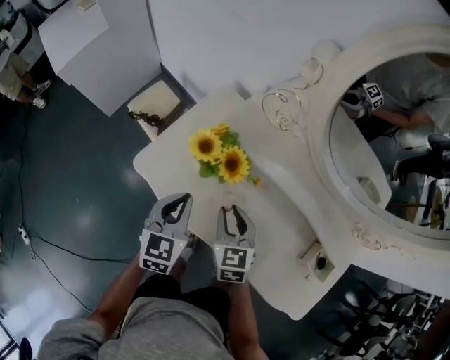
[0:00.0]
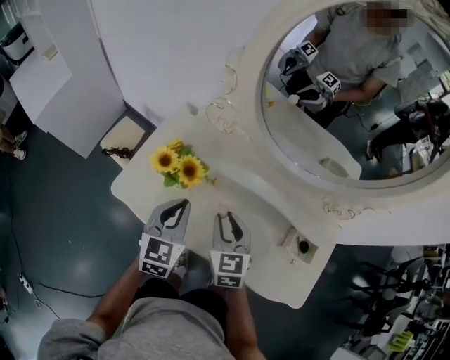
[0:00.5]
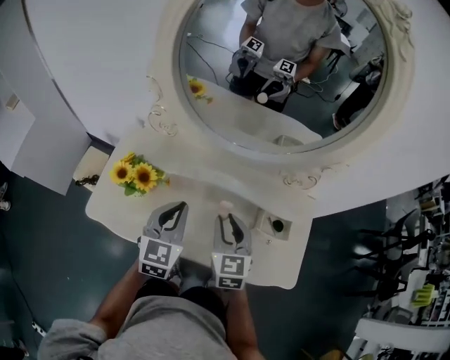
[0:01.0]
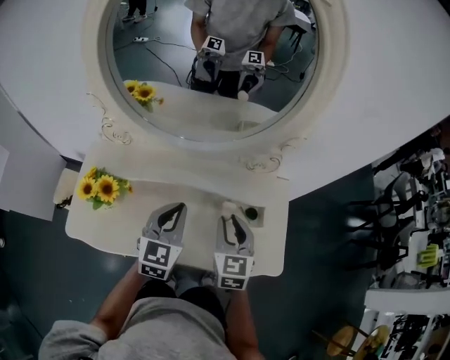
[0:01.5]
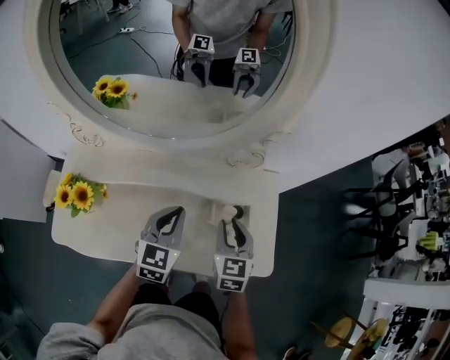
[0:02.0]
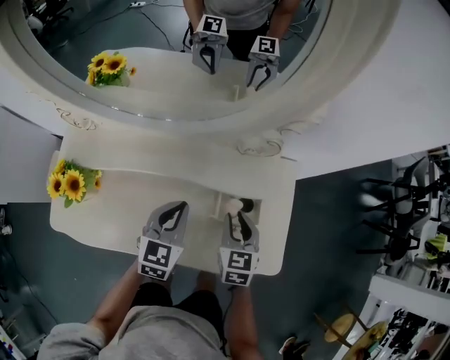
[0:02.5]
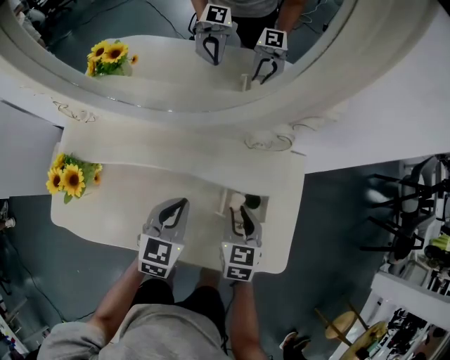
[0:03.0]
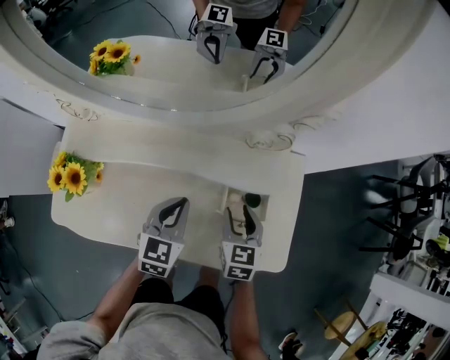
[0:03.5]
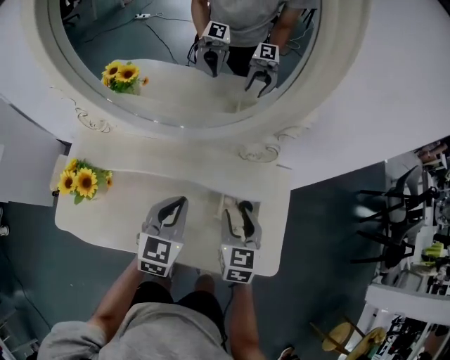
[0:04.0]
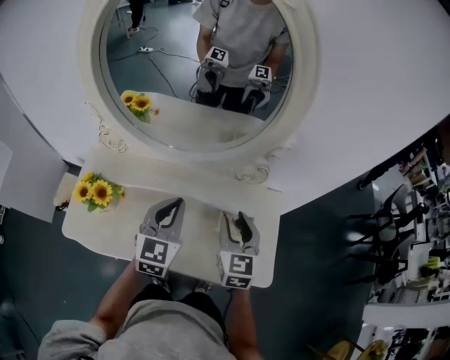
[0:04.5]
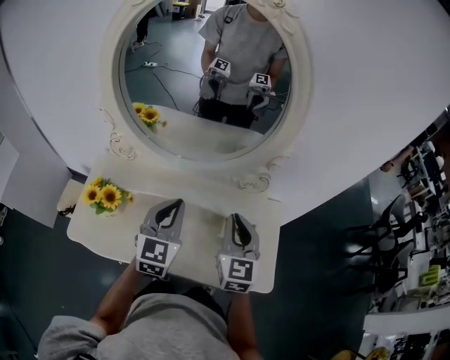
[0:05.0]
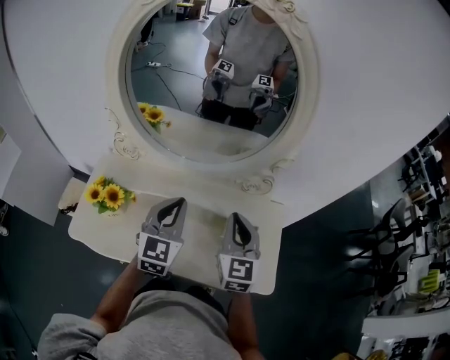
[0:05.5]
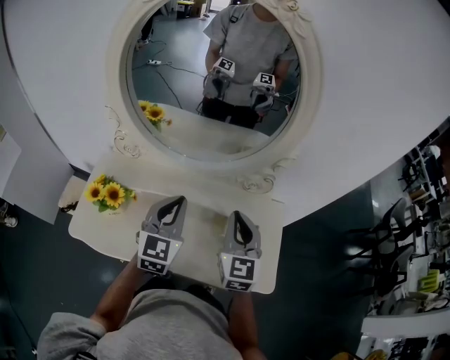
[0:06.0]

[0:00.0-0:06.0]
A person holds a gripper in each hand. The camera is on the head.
0:00.0 to 0:02.0: The left gripper moves approximately 40 cm, and rotates some 40 degrees. The right gripper ends up some 40 cm from where it was, and swivels about 40 degrees.
0:02.0 to 0:04.0: The right gripper goes downward and returns, roughly 10 cm each way. Meanwhile the left gripper goes downward and returns, some 10 cm each way.
0:04.0 to 0:06.0: The right gripper heads upward, covering approximately 15 cm, swivels approximately 20 degrees, and closes, while the left gripper goes approximately 15 cm upward and to the left.

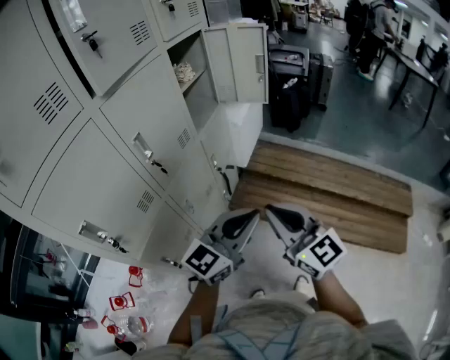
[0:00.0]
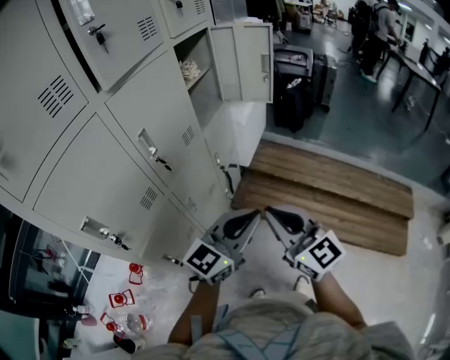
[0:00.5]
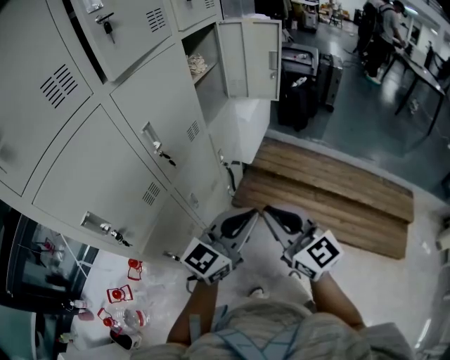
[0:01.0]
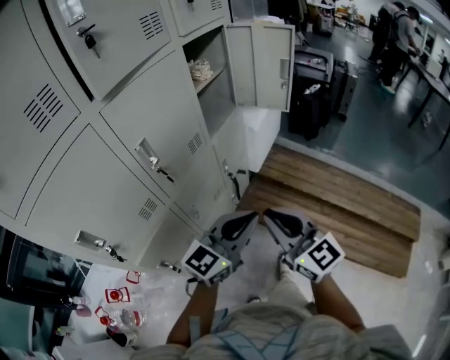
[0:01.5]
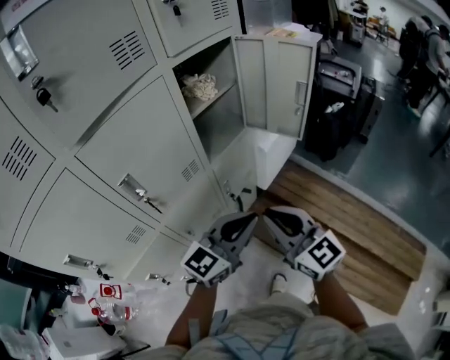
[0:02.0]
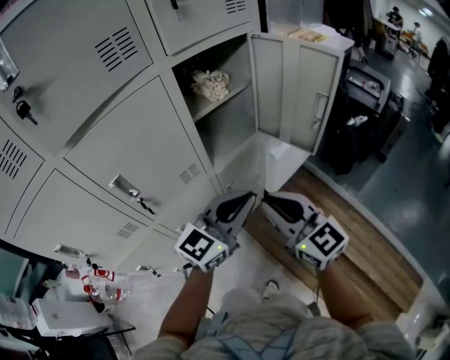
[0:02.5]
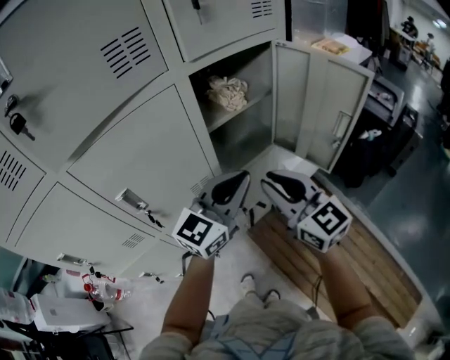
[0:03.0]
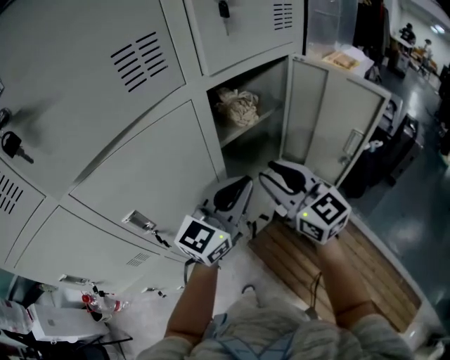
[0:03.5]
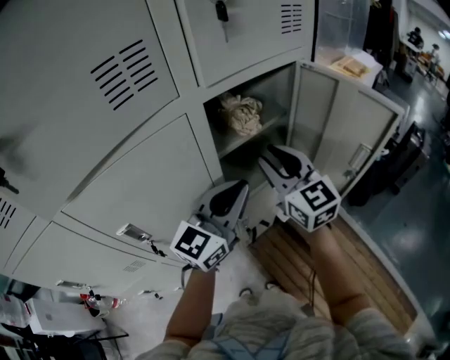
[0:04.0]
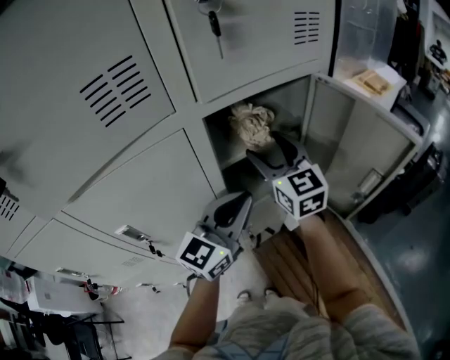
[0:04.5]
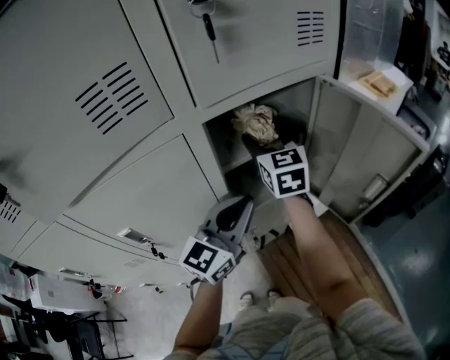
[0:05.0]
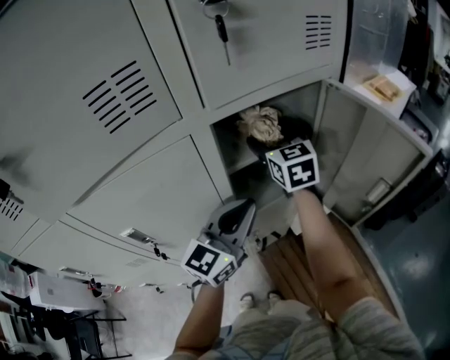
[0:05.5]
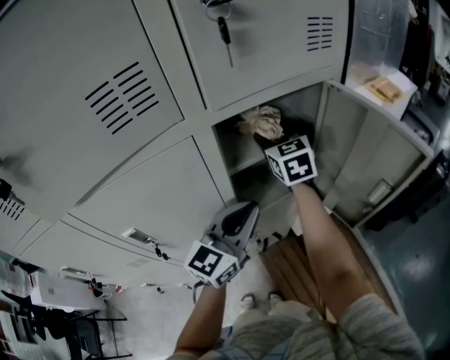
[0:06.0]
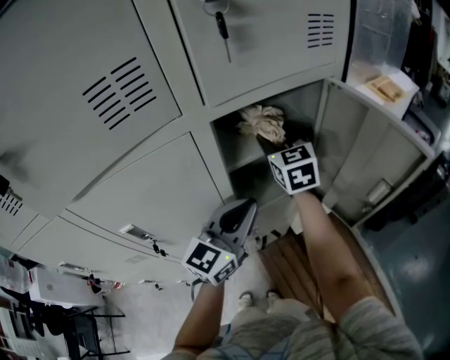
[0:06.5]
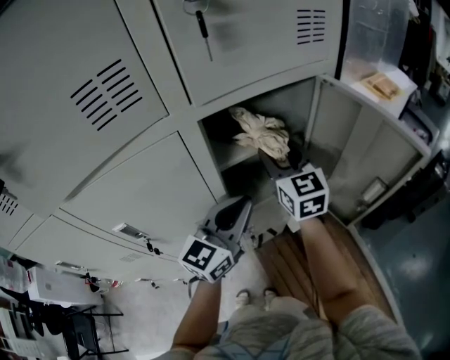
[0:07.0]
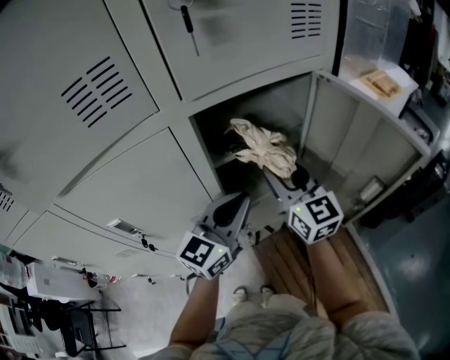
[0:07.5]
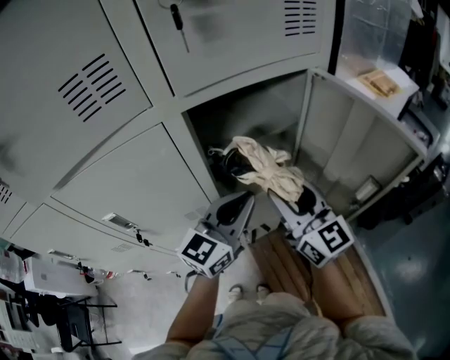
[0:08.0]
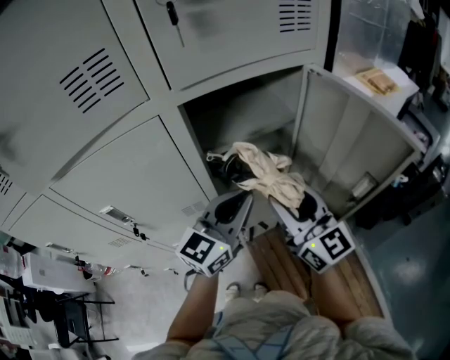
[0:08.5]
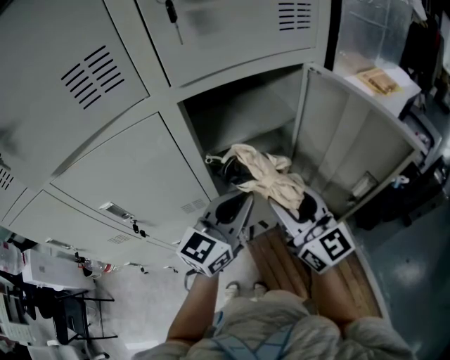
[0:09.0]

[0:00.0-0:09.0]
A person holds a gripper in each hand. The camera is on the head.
0:00.0 to 0:02.0: Both grippers move forward, some 20 cm.
0:02.0 to 0:04.5: Both grippers travel together forward, approximately 35 cm. The left gripper changes its angle by about 30 degrees; the right gripper opens up.
0:04.5 to 0:07.0: The right gripper goes forward and returns, approximately 10 cm each way.
0:07.0 to 0:09.0: The right gripper is displaced backward by approximately 15 cm, and turns by approximately 20 degrees.

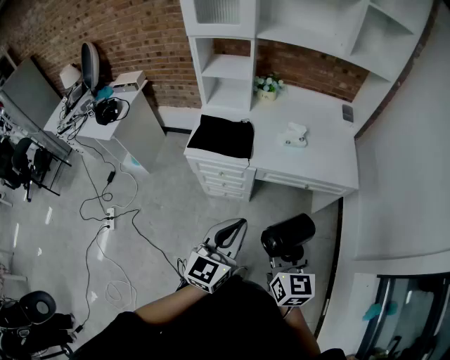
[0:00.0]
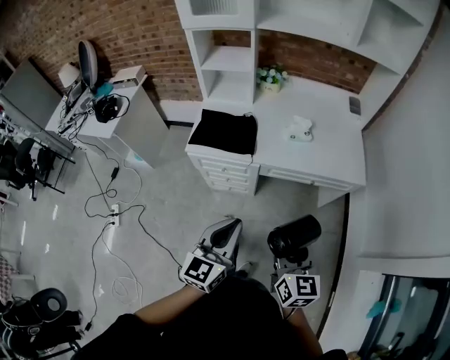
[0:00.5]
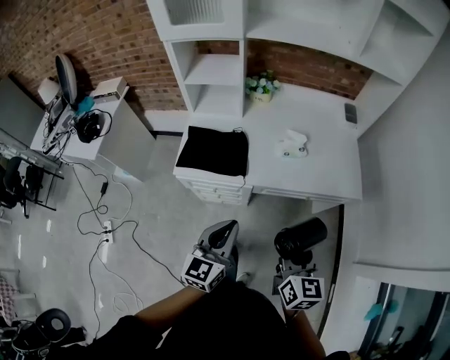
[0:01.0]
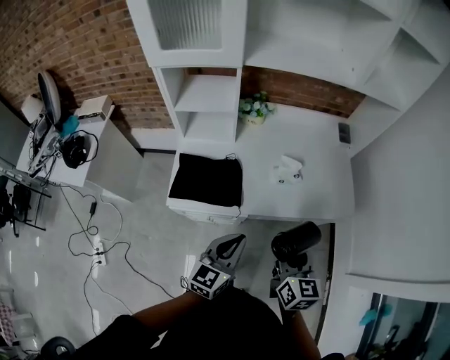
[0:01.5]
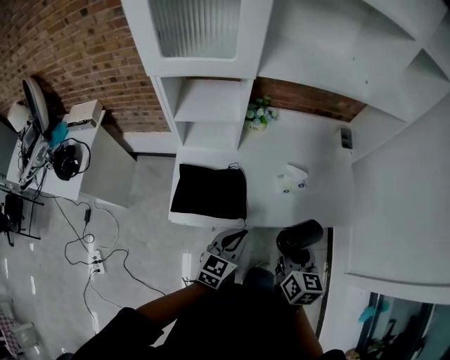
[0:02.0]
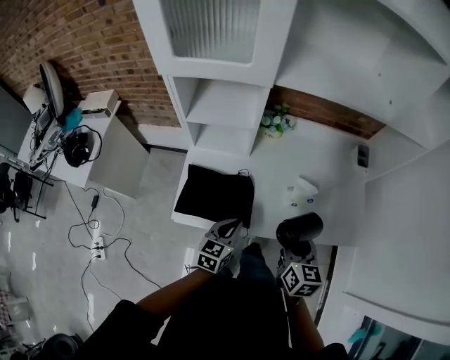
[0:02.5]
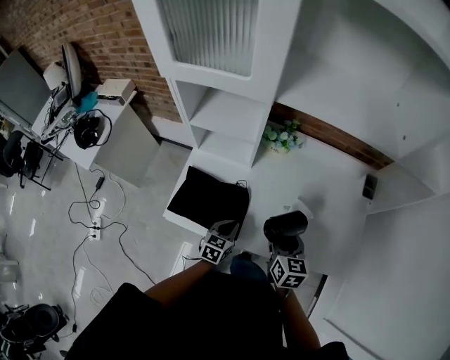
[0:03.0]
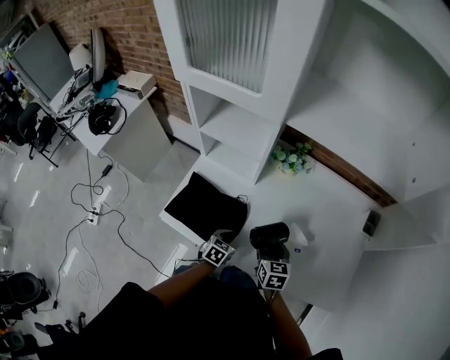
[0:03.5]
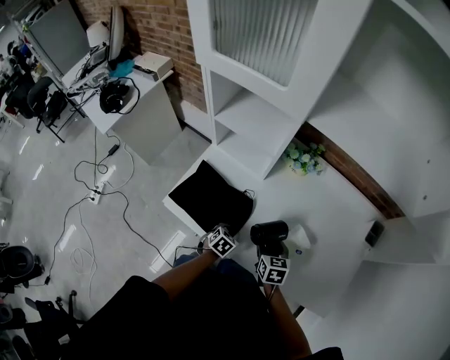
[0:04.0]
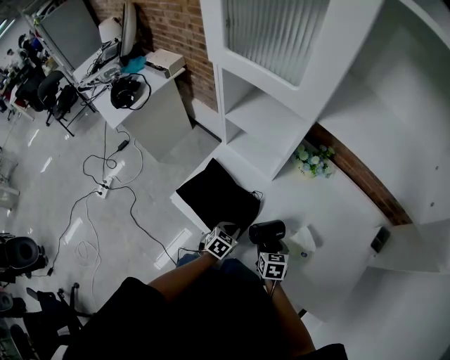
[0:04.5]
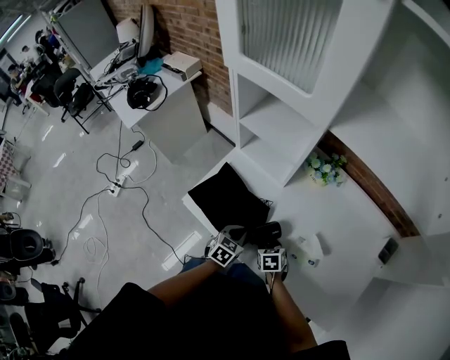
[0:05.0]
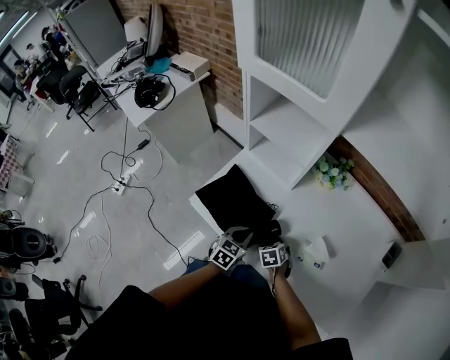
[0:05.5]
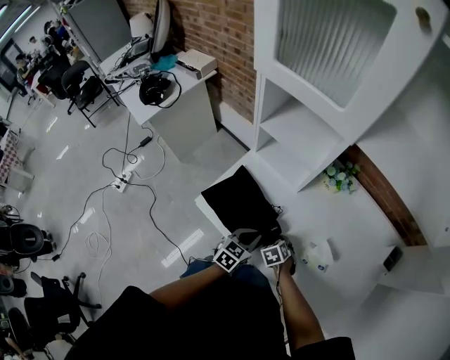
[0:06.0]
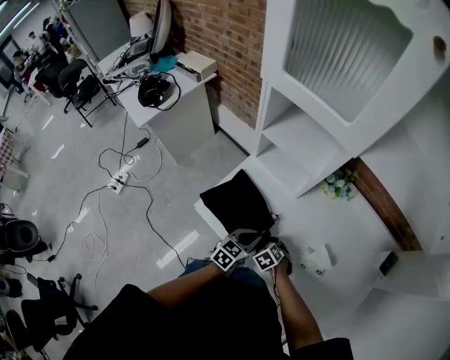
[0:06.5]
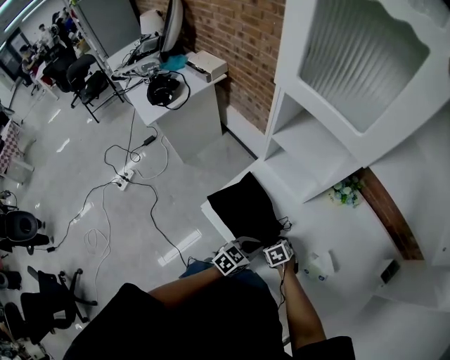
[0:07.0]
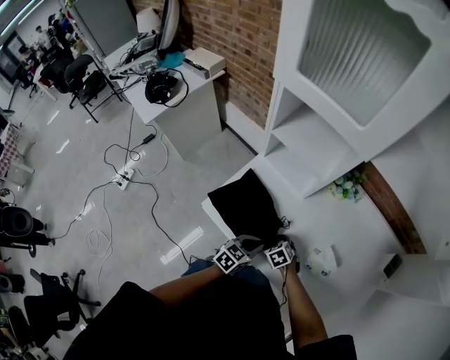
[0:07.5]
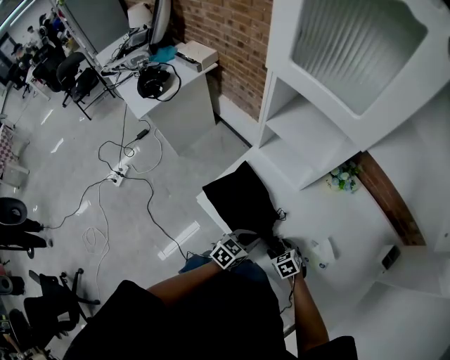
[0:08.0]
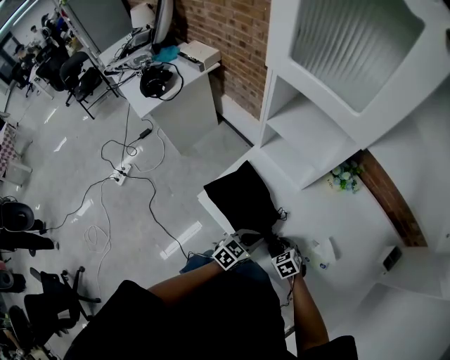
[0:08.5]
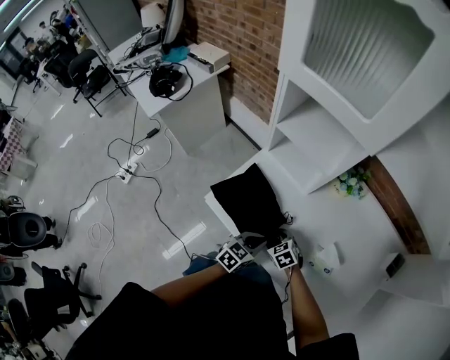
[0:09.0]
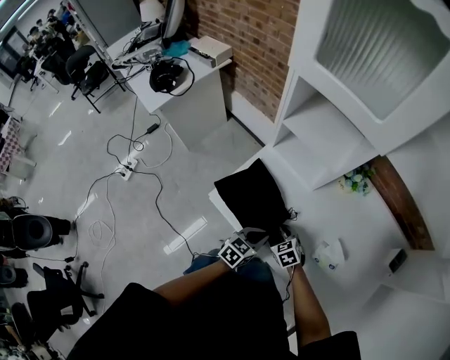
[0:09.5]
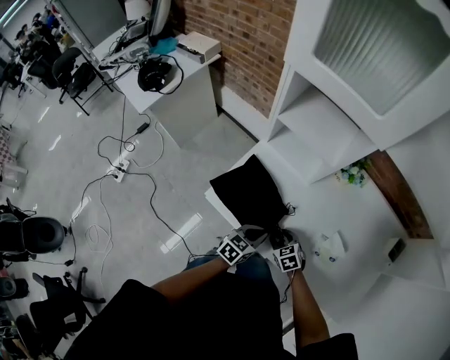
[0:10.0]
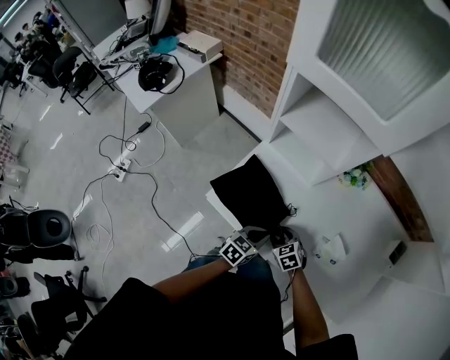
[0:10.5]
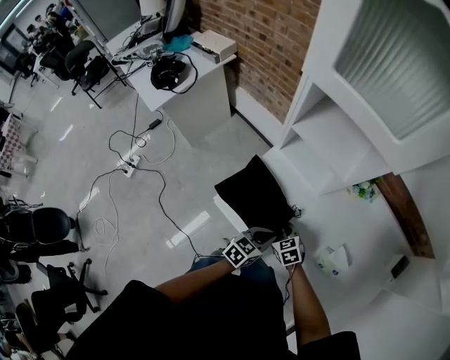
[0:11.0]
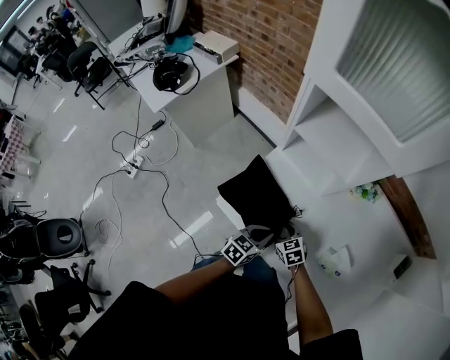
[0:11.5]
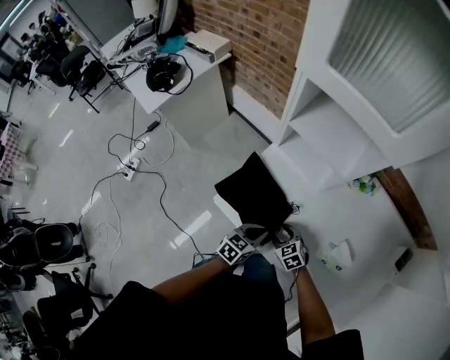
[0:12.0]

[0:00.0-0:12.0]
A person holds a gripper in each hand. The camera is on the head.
0:00.0 to 0:02.0: The two grippers go roughly 30 cm forward. The left gripper turns by roughly 20 degrees.
0:02.0 to 0:04.0: The two grippers go roughly 25 cm downward. The right gripper rotates approximately 40 degrees. Meanwhile the left gripper angles its fingers downward, by some 40 degrees, and opens up.
0:04.0 to 0:06.0: The left gripper moves upward, some 10 cm, and swivels roughly 30 degrees. Meanwhile the right gripper travels downward and to the left by approximately 15 cm, and turns by some 40 degrees.
0:06.0 to 0:08.0: There are only small adjustments of the grippers.
0:10.0 to 0:12.0: The right gripper goes about 5 cm to the left.
